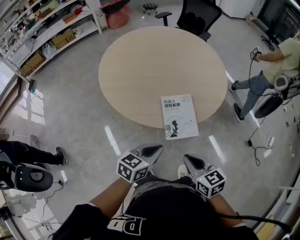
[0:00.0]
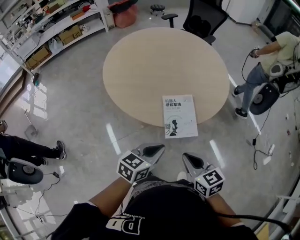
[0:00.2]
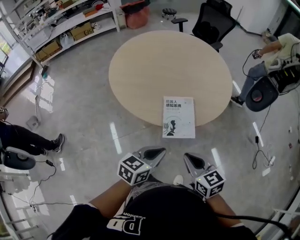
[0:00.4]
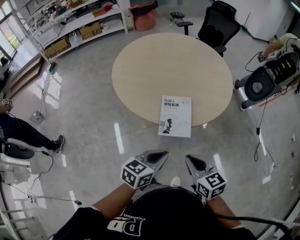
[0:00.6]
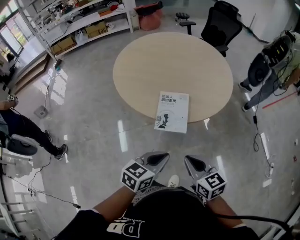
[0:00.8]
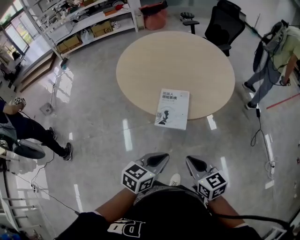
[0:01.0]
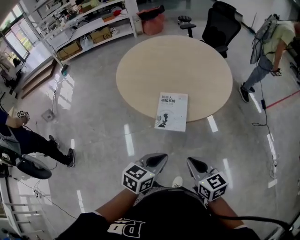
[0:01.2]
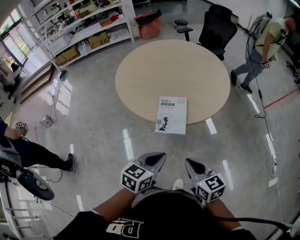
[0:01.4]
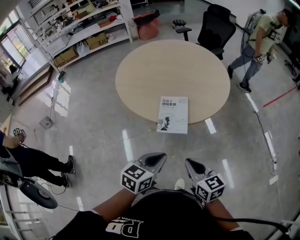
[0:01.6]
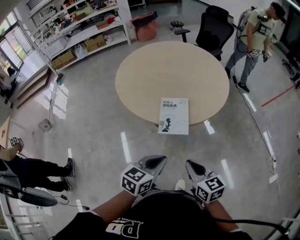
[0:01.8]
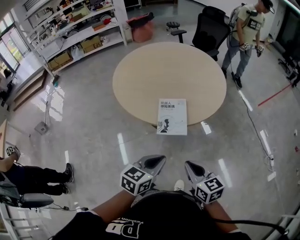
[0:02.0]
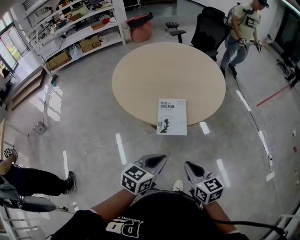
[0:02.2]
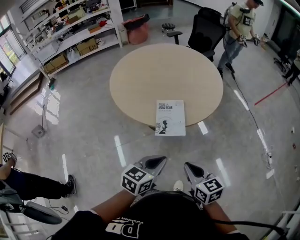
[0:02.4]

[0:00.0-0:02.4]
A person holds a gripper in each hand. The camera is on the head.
0:00.0 to 0:01.2: Both grippers move to the right and backward, roughly 20 cm.
0:01.2 to 0:02.4: The right gripper moves approximately 5 cm.

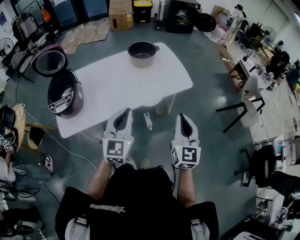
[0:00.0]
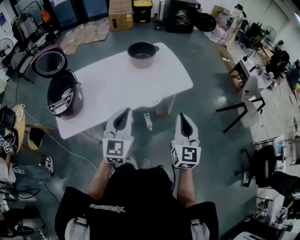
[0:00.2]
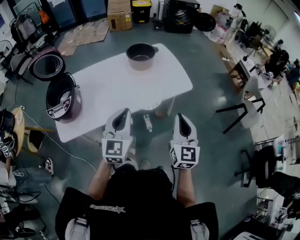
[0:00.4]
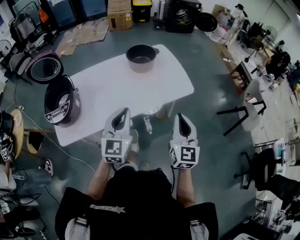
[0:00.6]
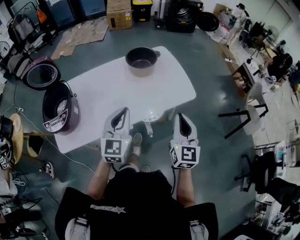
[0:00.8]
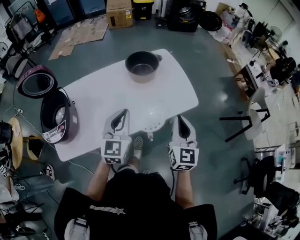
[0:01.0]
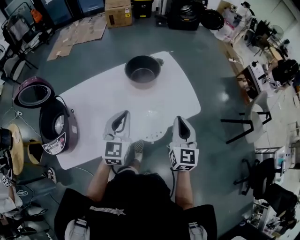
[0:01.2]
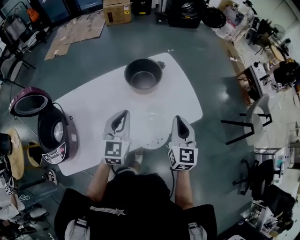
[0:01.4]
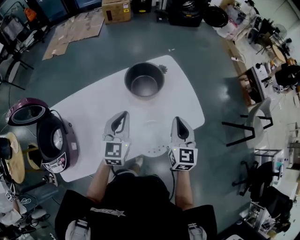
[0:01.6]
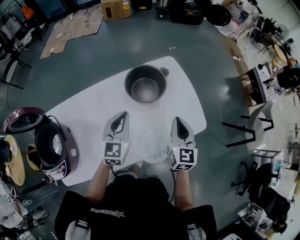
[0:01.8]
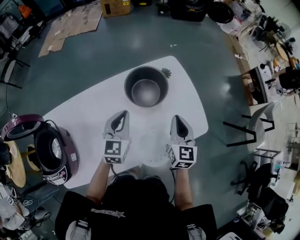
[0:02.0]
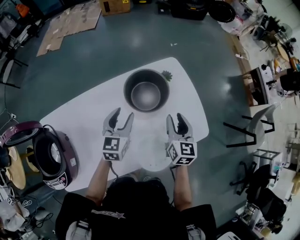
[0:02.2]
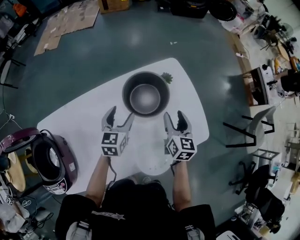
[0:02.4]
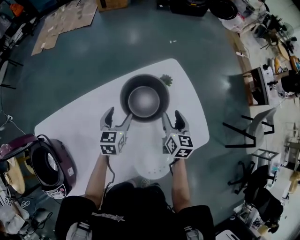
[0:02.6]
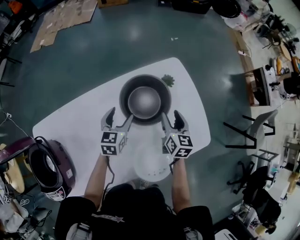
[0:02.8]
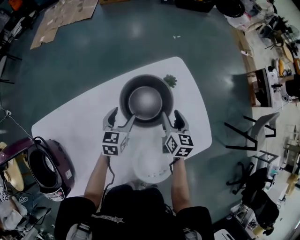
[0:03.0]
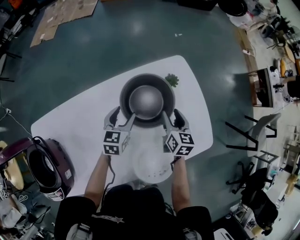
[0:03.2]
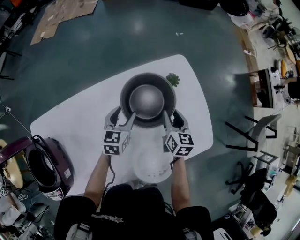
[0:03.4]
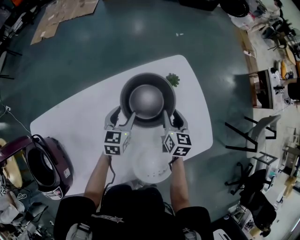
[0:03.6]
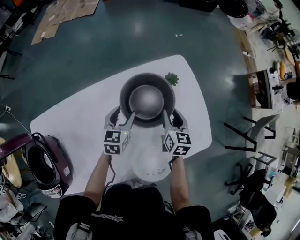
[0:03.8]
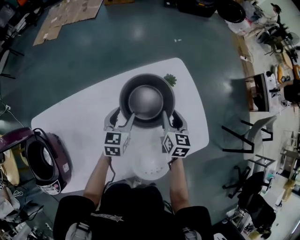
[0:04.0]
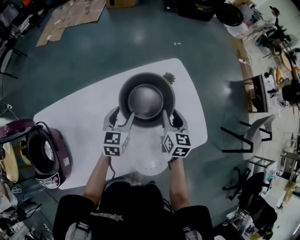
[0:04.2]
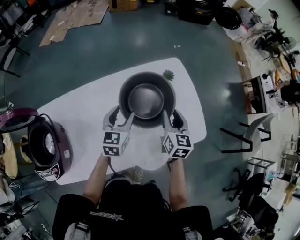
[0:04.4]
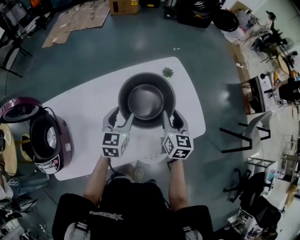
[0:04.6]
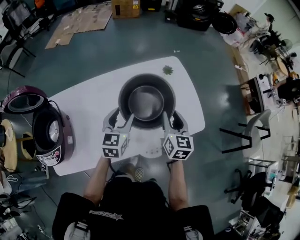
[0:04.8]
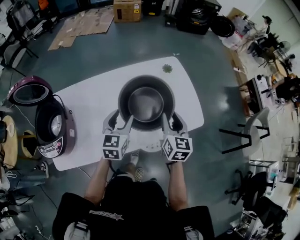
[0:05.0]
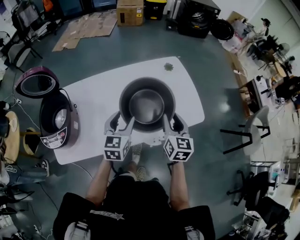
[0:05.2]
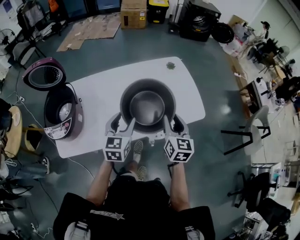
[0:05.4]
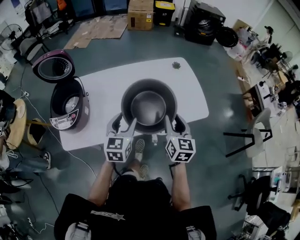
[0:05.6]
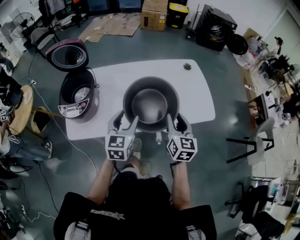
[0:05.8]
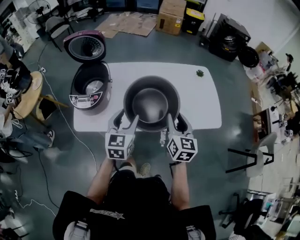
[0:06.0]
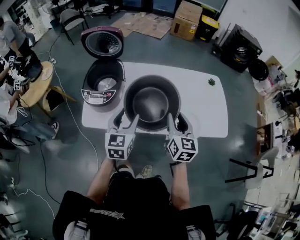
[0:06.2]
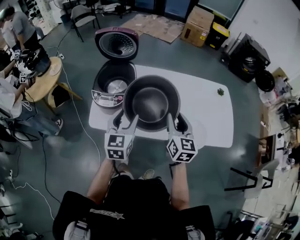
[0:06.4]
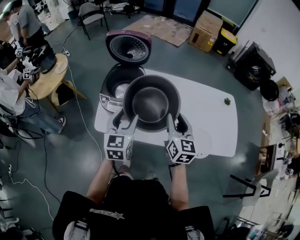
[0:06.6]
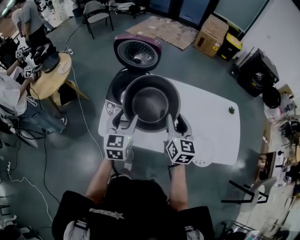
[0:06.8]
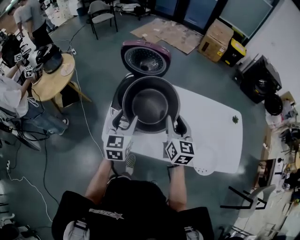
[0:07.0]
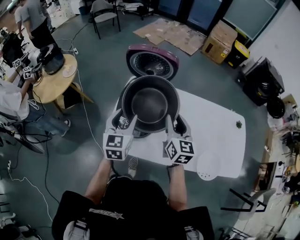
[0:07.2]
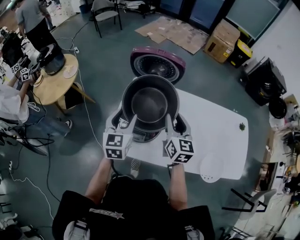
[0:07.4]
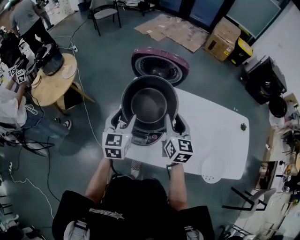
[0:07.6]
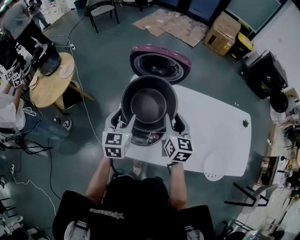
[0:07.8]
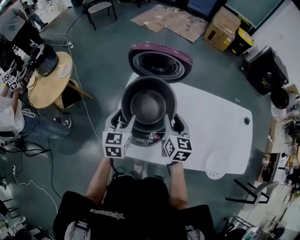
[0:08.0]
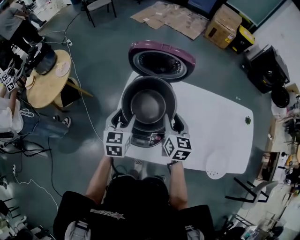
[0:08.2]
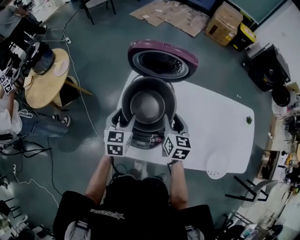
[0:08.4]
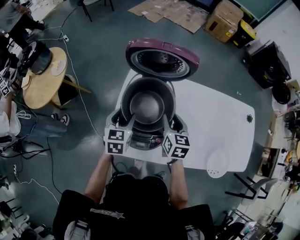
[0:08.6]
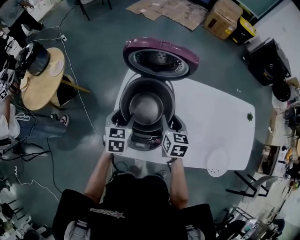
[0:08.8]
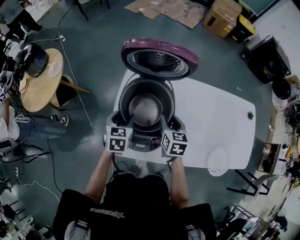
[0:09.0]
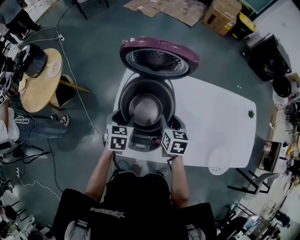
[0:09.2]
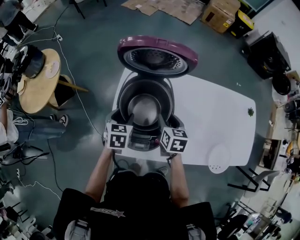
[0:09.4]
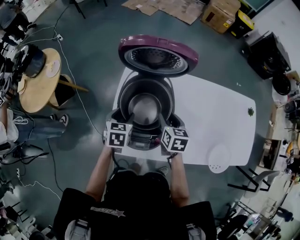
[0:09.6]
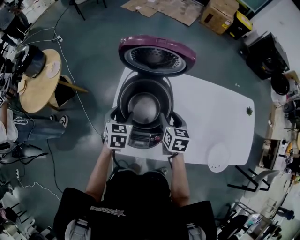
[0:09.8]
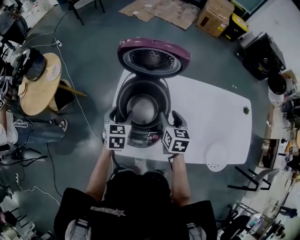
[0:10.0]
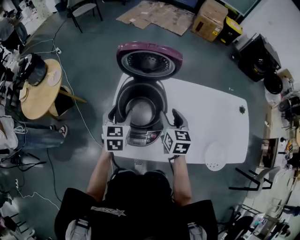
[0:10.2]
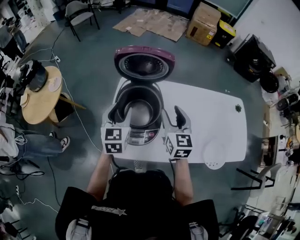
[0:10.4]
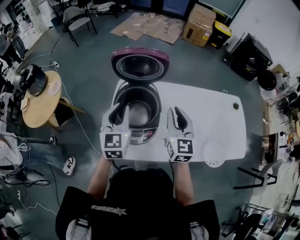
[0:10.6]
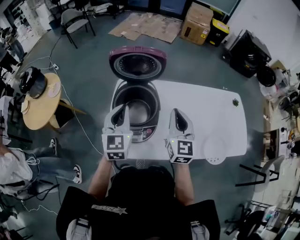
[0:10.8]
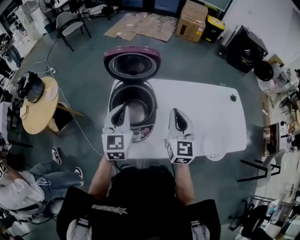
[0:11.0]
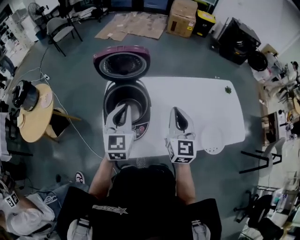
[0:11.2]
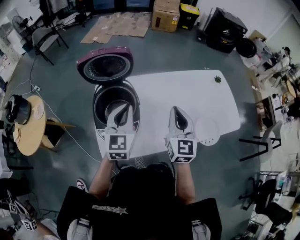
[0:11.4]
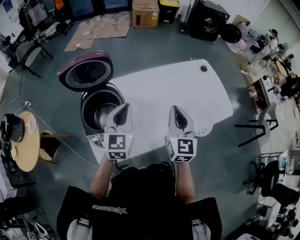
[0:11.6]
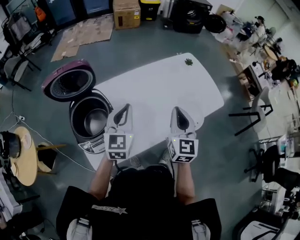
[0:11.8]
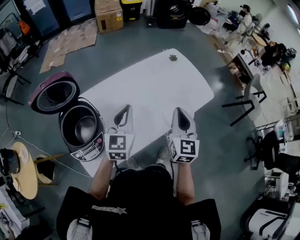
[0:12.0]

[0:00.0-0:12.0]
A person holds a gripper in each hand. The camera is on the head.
0:00.0 to 0:01.6: Both grippers travel together forward, about 40 cm.
0:01.6 to 0:03.0: The left gripper heads downward and forward, covering about 25 cm, turns by approximately 20 degrees, and opens up, while the right gripper goes approximately 30 cm forward and downward, rotates roughly 30 degrees, and opens up.
0:03.0 to 0:04.4: Both grippers move upward and backward, approximately 10 cm. The right gripper closes its fingers.
0:04.4 to 0:06.0: The right gripper shifts approximately 35 cm backward and to the left. The left gripper heads backward, covering some 35 cm, and turns by roughly 20 degrees.
0:06.0 to 0:07.6: Both grippers are carried to the left and forward, some 40 cm.
0:07.6 to 0:09.0: The grippers both shift downward by roughly 15 cm. The right gripper swivels approximately 20 degrees; the left gripper changes its angle by roughly 20 degrees.
0:09.0 to 0:10.4: Both grippers travel together upward, roughly 15 cm. The left gripper turns by approximately 20 degrees. Meanwhile the right gripper swivels some 30 degrees.
0:10.4 to 0:12.0: The right gripper ends up approximately 35 cm from where it was, rotates about 40 degrees, and closes up. The left gripper moves approximately 35 cm, swivels some 40 degrees, and closes.

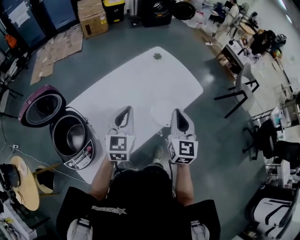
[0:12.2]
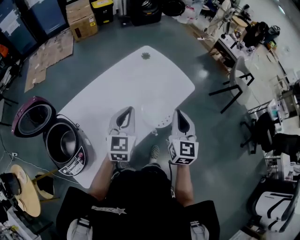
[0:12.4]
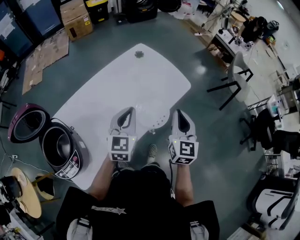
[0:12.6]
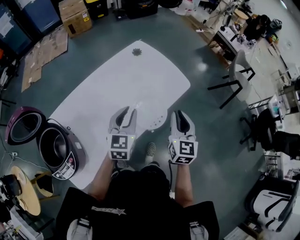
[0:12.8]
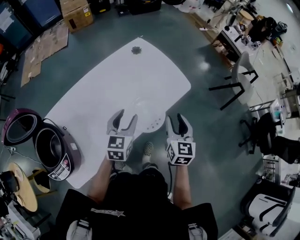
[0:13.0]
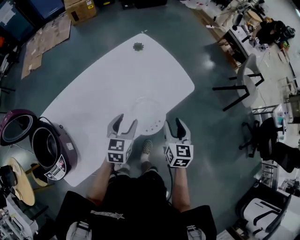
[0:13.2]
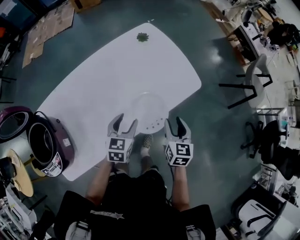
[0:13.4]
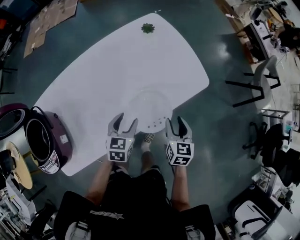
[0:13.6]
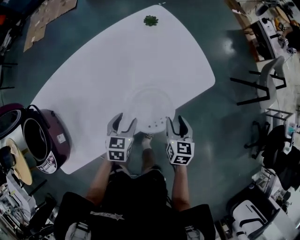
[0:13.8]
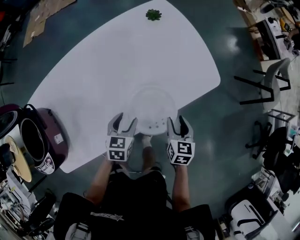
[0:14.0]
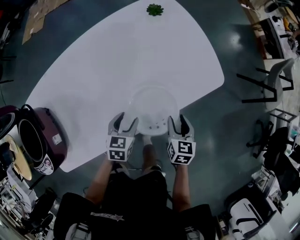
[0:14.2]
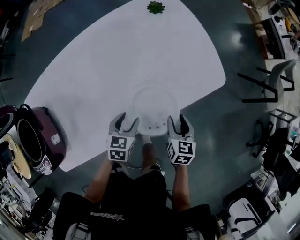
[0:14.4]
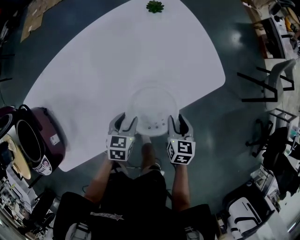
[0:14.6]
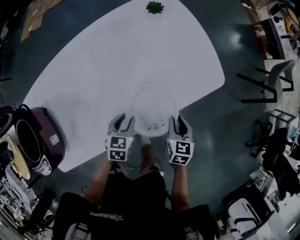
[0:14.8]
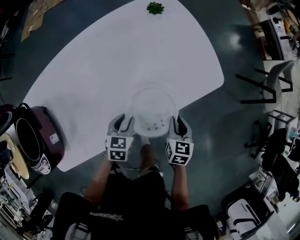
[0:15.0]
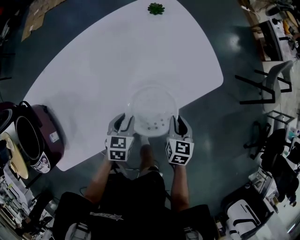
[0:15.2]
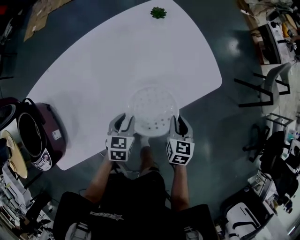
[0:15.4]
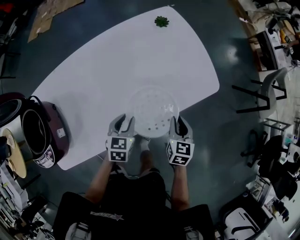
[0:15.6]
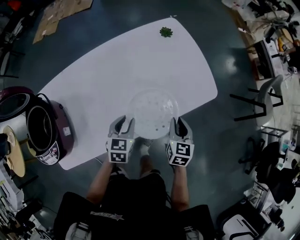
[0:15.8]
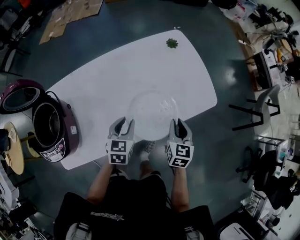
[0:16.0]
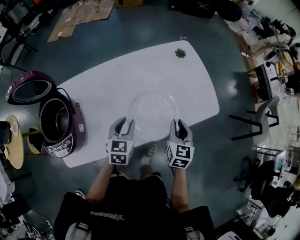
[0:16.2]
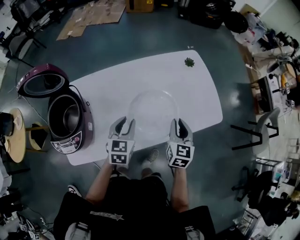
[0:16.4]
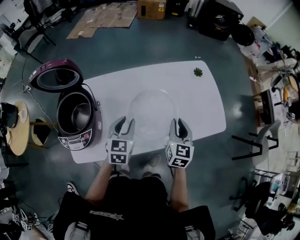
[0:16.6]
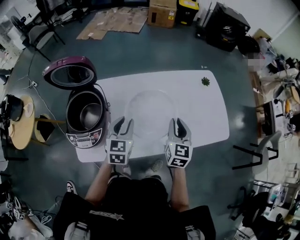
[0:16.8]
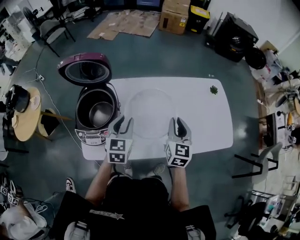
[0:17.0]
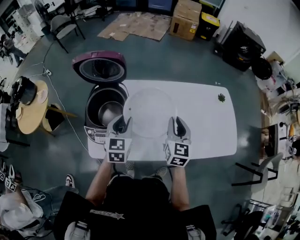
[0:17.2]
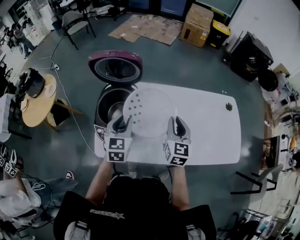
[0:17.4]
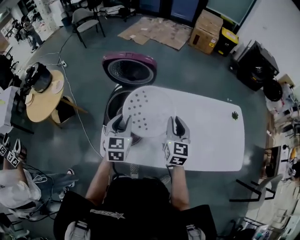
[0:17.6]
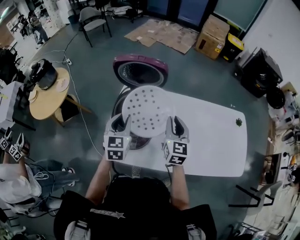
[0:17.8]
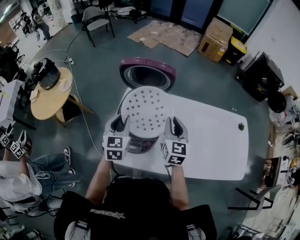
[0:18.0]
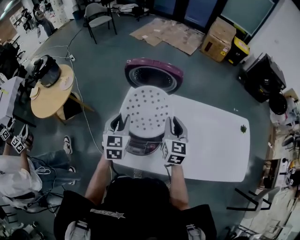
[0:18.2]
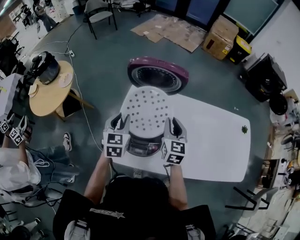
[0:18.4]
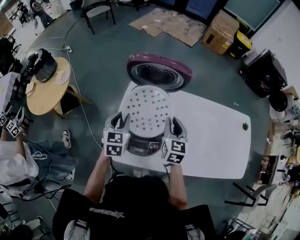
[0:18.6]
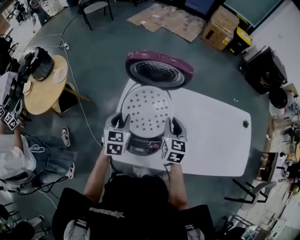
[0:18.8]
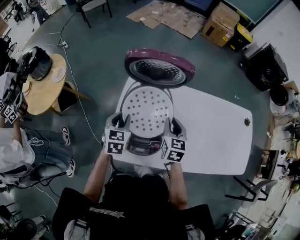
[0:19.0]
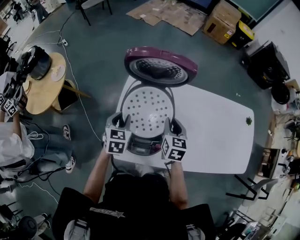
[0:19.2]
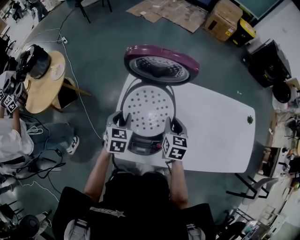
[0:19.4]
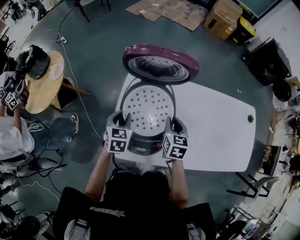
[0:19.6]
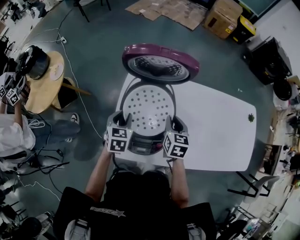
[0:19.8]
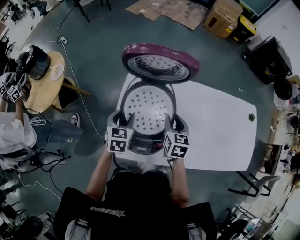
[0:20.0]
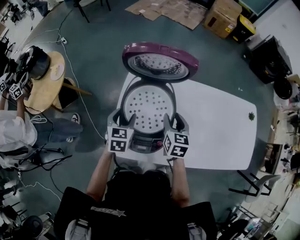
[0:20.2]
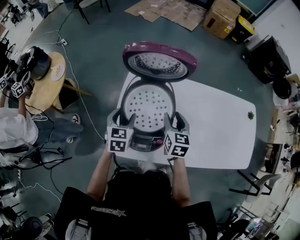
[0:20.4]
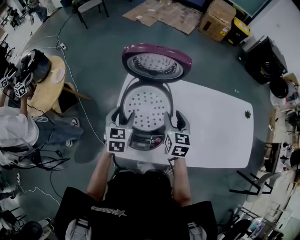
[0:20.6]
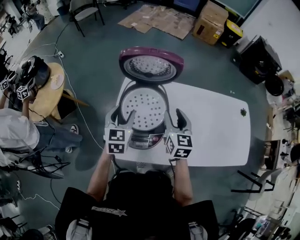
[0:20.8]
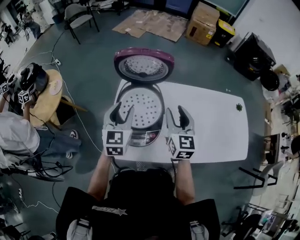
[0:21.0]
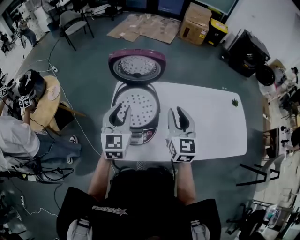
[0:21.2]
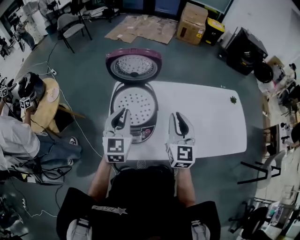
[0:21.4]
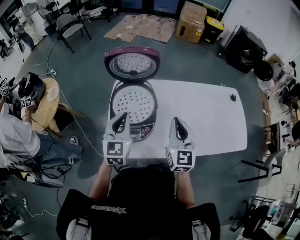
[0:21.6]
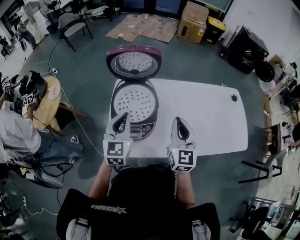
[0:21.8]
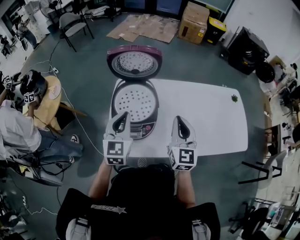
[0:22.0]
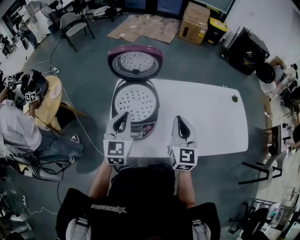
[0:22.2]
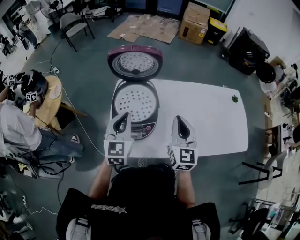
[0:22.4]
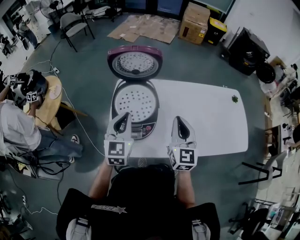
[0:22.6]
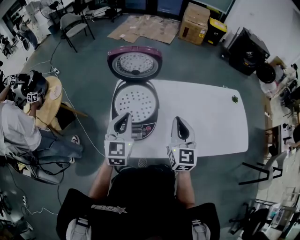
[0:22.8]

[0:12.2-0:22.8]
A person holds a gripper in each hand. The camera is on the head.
0:12.2 to 0:13.8: Both grippers travel together downward and to the right, approximately 30 cm. The left gripper points its fingers about 30 degrees further downward, and opens, while the right gripper tilts its fingers roughly 30 degrees downward, and opens up.
0:13.8 to 0:15.2: Both grippers travel together downward, approximately 5 cm. The right gripper closes.
0:15.2 to 0:16.8: The right gripper moves to the left and upward, roughly 35 cm, and swivels some 30 degrees. The left gripper heads upward and to the left, covering some 35 cm, and changes its angle by about 30 degrees.
0:16.8 to 0:18.2: Both grippers move to the left, roughly 35 cm. The right gripper changes its angle by some 20 degrees. The left gripper changes its angle by roughly 20 degrees.
0:18.2 to 0:19.8: Both grippers move downward, roughly 10 cm. The right gripper changes its angle by some 20 degrees; the left gripper changes its angle by about 20 degrees.
0:19.8 to 0:21.2: Both grippers move upward, approximately 20 cm. The right gripper swivels roughly 30 degrees. The left gripper tips its fingers upward by approximately 30 degrees.
0:21.2 to 0:22.8: The two grippers go approximately 5 cm backward. The left gripper closes up, while the right gripper closes its fingers.
